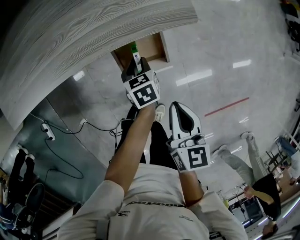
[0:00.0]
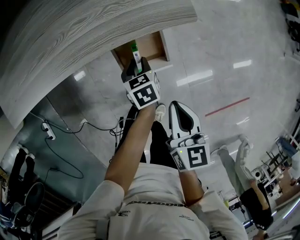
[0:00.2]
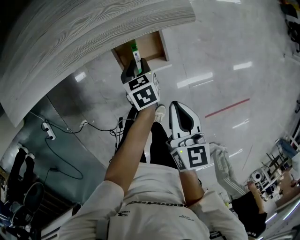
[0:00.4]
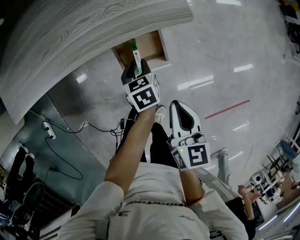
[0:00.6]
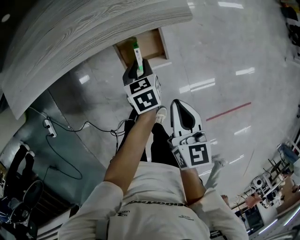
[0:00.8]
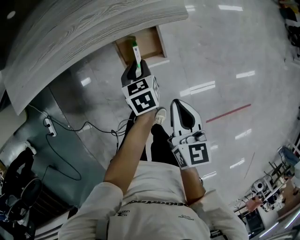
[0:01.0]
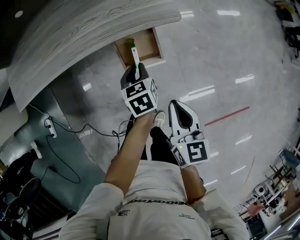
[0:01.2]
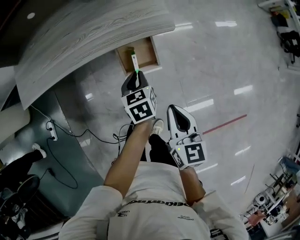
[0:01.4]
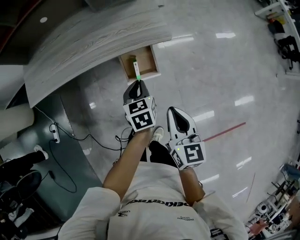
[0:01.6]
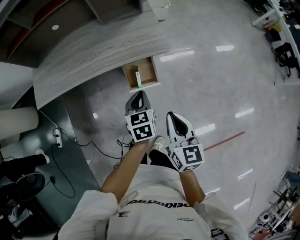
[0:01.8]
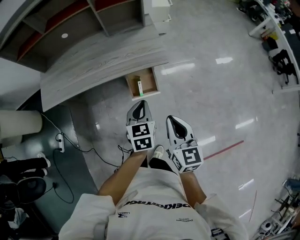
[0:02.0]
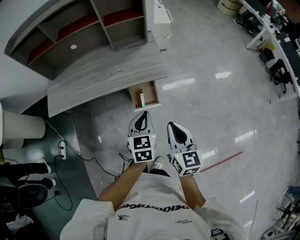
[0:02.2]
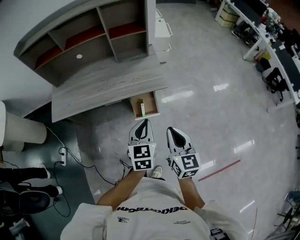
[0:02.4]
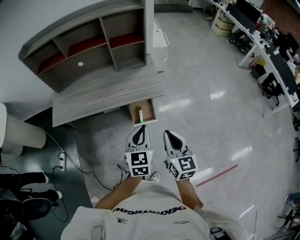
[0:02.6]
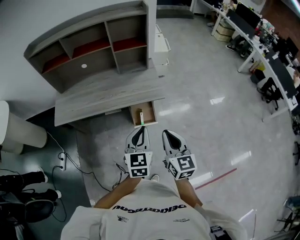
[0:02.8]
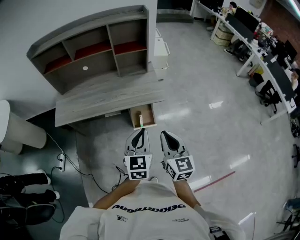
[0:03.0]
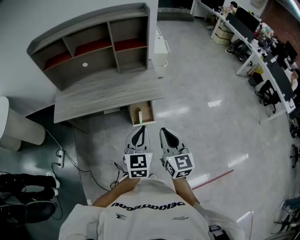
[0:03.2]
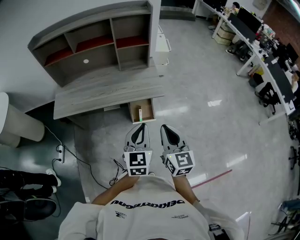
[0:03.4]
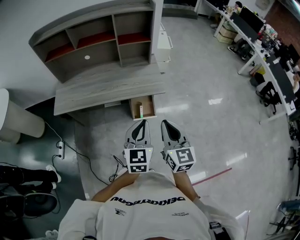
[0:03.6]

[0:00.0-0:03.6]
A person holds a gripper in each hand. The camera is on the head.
0:00.0 to 0:01.8: The two grippers go approximately 25 cm upward and backward. The left gripper turns by some 20 degrees, and closes up.
0:01.8 to 0:03.6: The right gripper shifts approximately 20 cm upward. Meanwhile the left gripper moves upward and backward, some 30 cm, and swivels about 30 degrees.

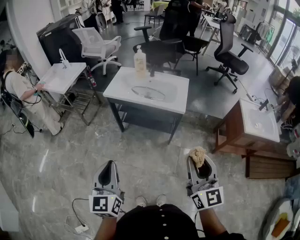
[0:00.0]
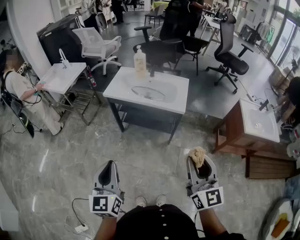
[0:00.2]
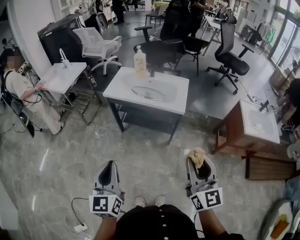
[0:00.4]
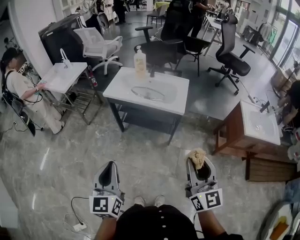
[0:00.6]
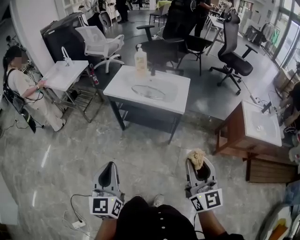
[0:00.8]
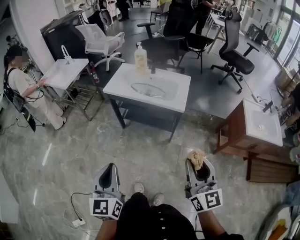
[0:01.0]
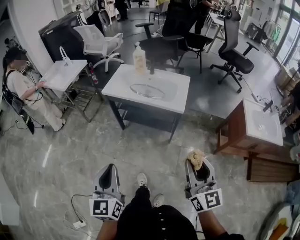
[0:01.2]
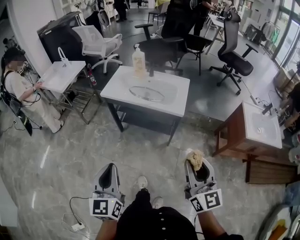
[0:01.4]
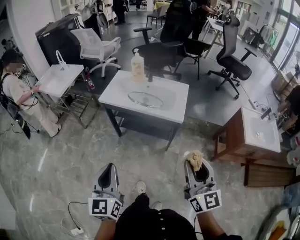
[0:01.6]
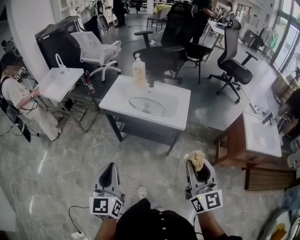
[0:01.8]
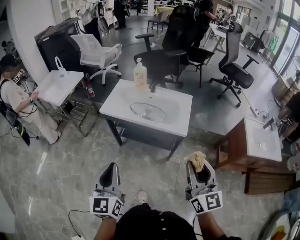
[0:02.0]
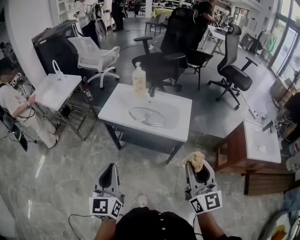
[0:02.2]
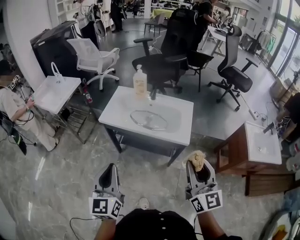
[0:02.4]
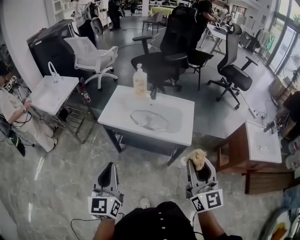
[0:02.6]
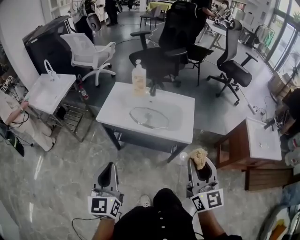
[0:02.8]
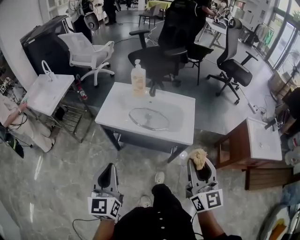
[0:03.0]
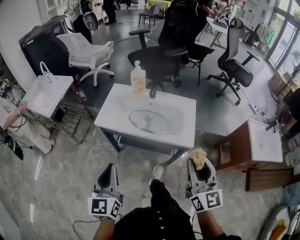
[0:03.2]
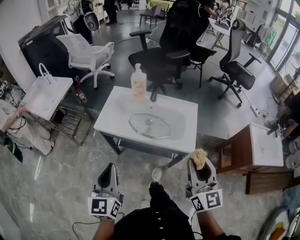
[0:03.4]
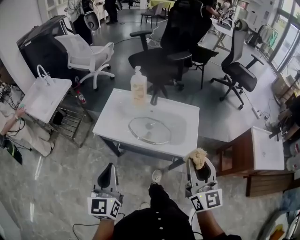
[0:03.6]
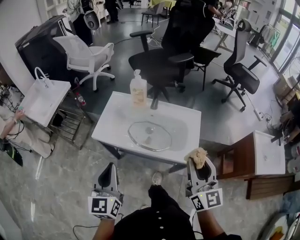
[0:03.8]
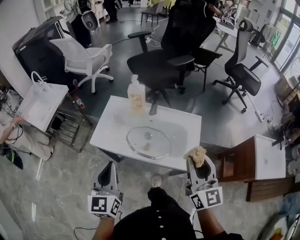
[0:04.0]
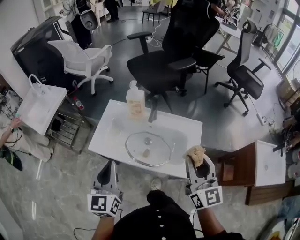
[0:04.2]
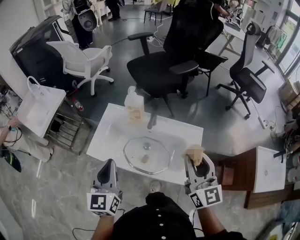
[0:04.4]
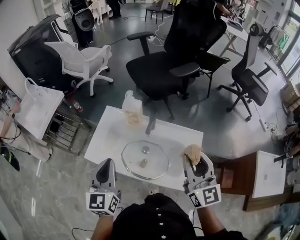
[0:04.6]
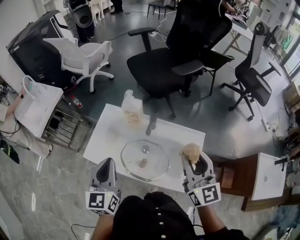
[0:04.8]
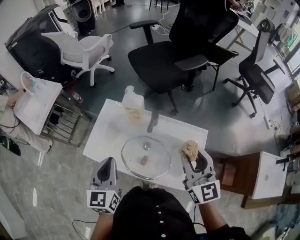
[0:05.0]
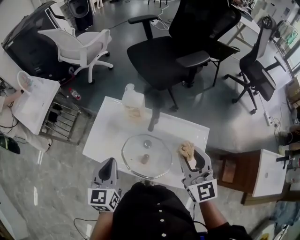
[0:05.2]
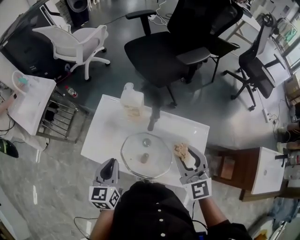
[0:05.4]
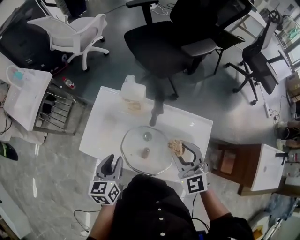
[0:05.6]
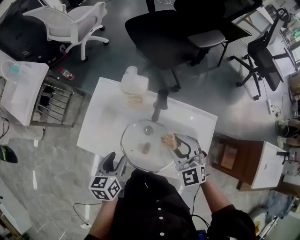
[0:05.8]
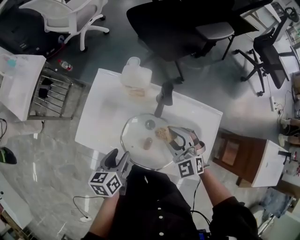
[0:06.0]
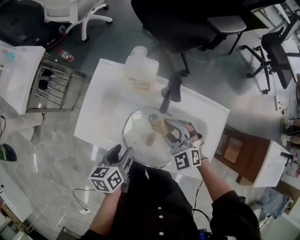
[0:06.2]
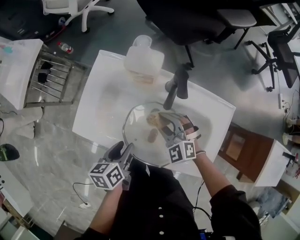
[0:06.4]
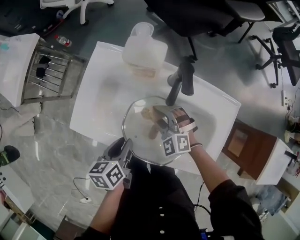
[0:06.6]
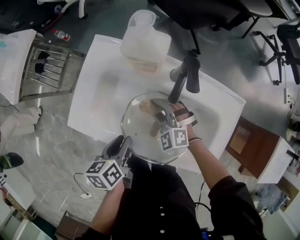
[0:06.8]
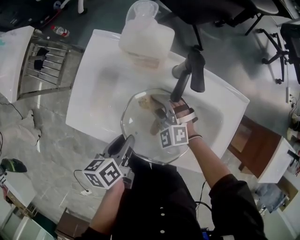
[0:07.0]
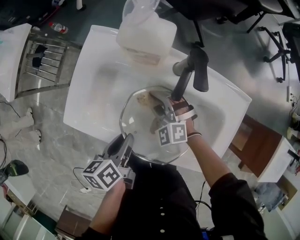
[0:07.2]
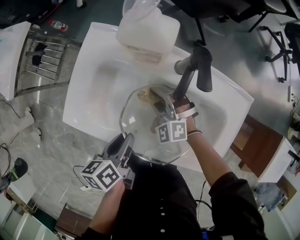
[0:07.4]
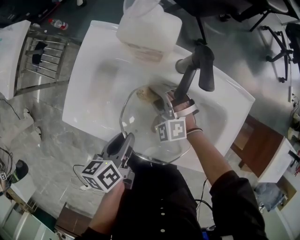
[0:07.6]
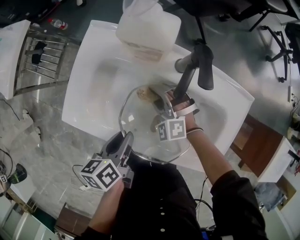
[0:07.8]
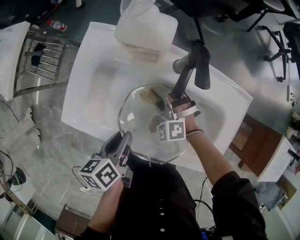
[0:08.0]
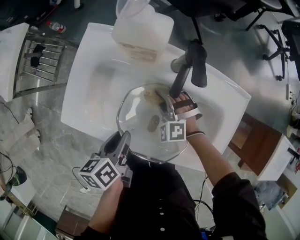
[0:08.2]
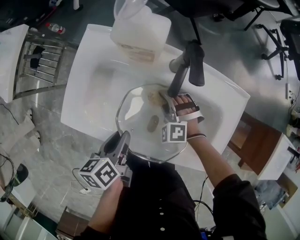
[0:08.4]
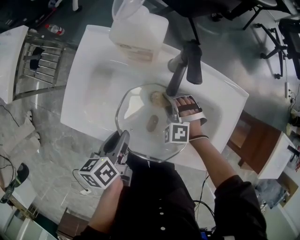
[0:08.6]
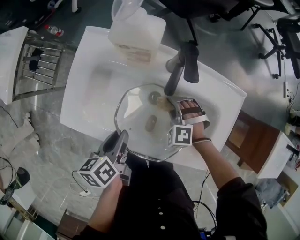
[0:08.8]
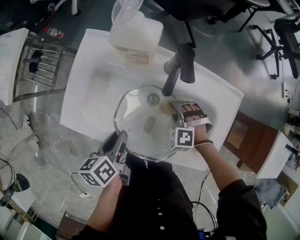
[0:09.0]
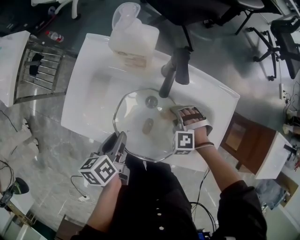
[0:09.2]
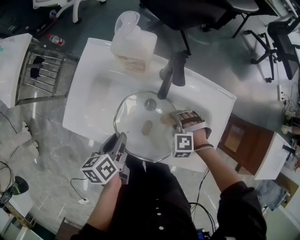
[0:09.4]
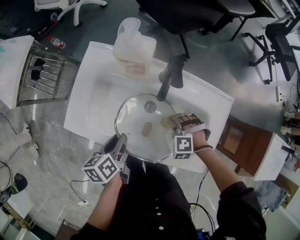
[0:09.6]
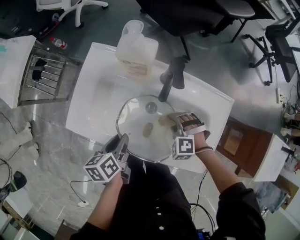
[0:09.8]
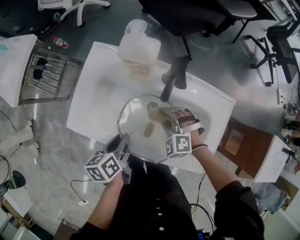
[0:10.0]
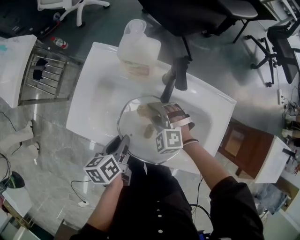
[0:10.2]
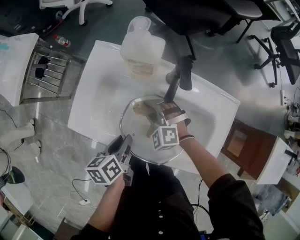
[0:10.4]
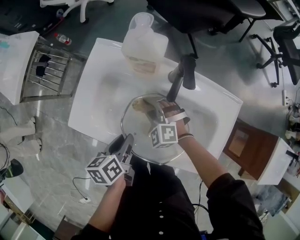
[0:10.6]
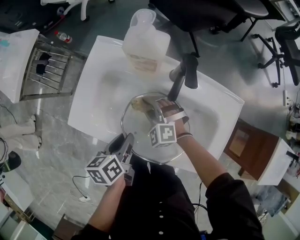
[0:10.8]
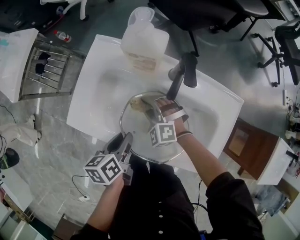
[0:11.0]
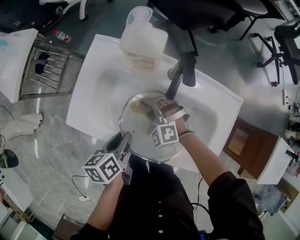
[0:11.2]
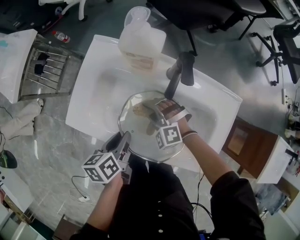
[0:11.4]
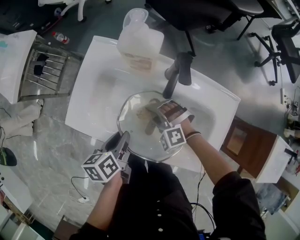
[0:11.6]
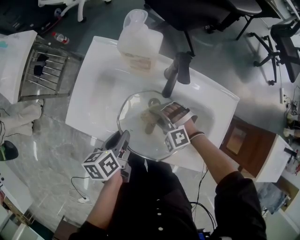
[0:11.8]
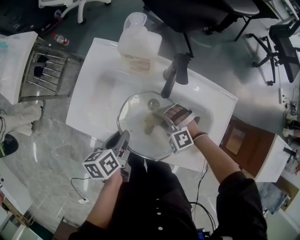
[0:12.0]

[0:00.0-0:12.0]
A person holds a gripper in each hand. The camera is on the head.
0:00.0 to 0:01.6: The grippers both shift forward by approximately 5 cm.
0:01.6 to 0:03.0: Both grippers travel together forward, roughly 20 cm.
0:03.0 to 0:04.4: The two grippers go approximately 30 cm forward.
0:04.4 to 0:06.0: The left gripper moves downward, some 25 cm, tips its fingers downward by about 30 degrees, and opens its fingers. Meanwhile the right gripper goes roughly 30 cm downward, forward and to the left, and tips its fingers downward by approximately 30 degrees.
0:06.0 to 0:07.6: The left gripper goes approximately 5 cm downward, and closes. The right gripper shifts some 20 cm downward and to the left, and turns by approximately 20 degrees.
0:07.6 to 0:09.0: The right gripper moves to the right and backward, approximately 15 cm, and turns by some 30 degrees.
0:09.0 to 0:10.4: The right gripper travels to the left and upward by some 15 cm, and turns by about 20 degrees.
0:10.4 to 0:12.0: The right gripper goes about 5 cm backward, and swivels roughly 20 degrees.

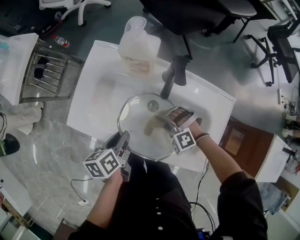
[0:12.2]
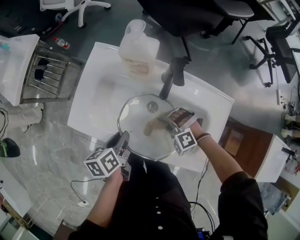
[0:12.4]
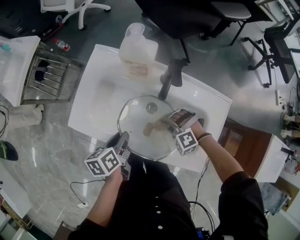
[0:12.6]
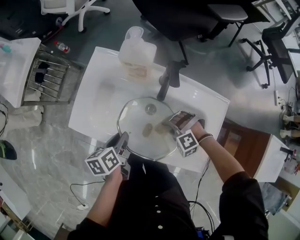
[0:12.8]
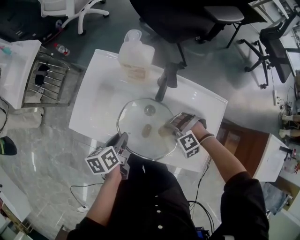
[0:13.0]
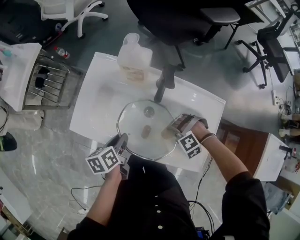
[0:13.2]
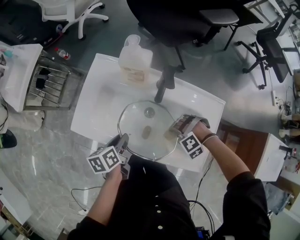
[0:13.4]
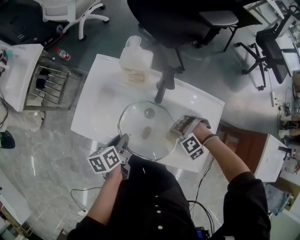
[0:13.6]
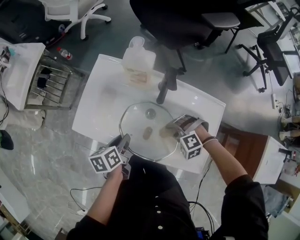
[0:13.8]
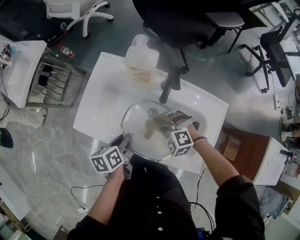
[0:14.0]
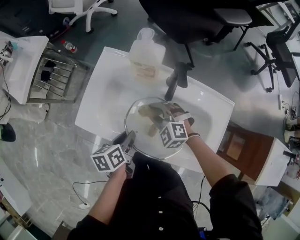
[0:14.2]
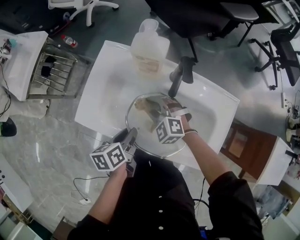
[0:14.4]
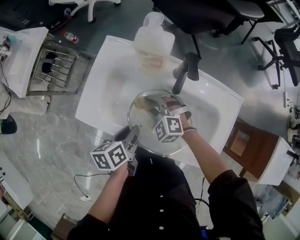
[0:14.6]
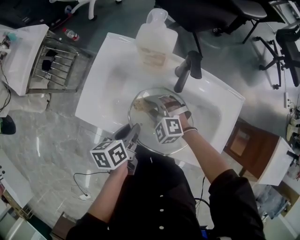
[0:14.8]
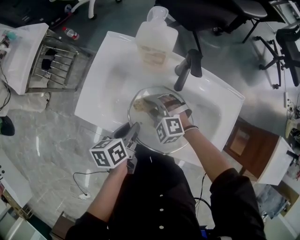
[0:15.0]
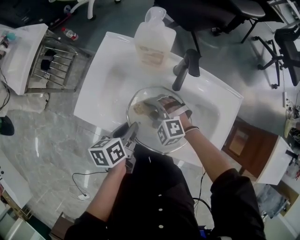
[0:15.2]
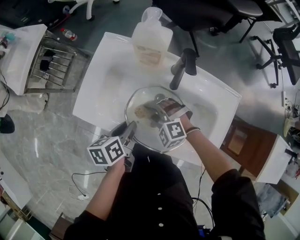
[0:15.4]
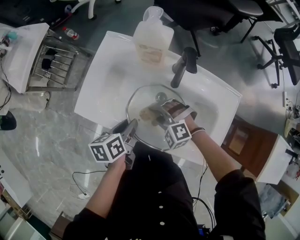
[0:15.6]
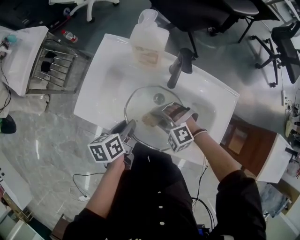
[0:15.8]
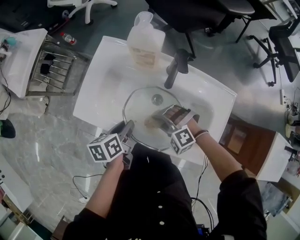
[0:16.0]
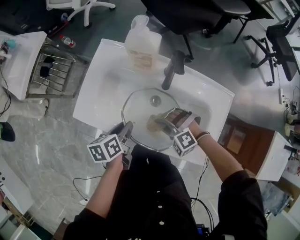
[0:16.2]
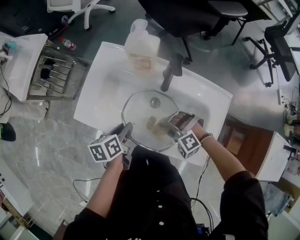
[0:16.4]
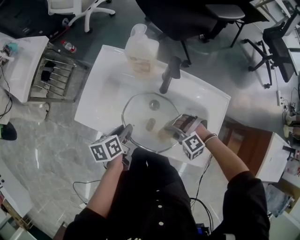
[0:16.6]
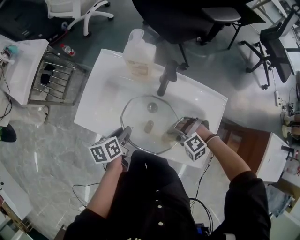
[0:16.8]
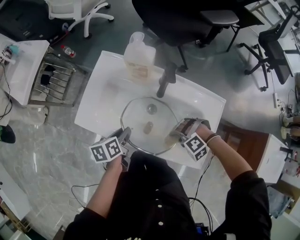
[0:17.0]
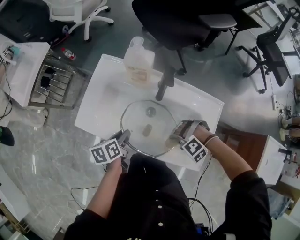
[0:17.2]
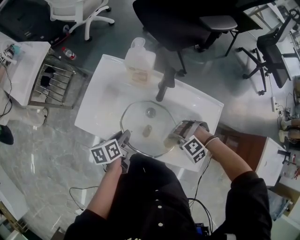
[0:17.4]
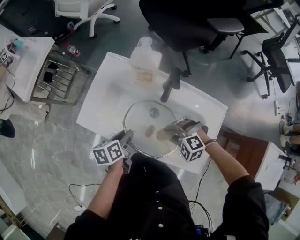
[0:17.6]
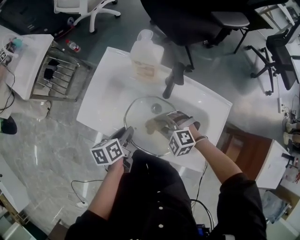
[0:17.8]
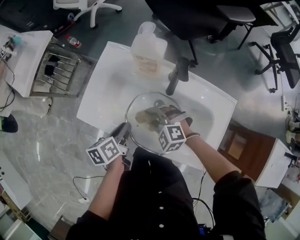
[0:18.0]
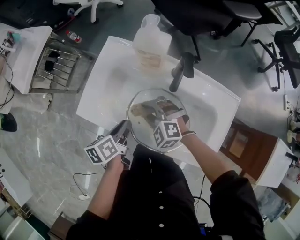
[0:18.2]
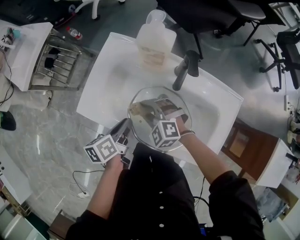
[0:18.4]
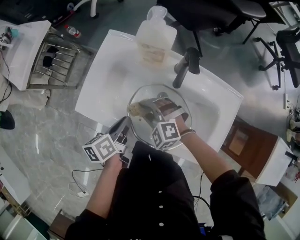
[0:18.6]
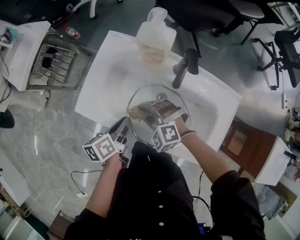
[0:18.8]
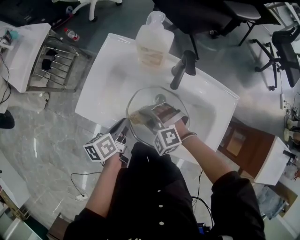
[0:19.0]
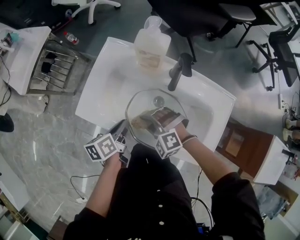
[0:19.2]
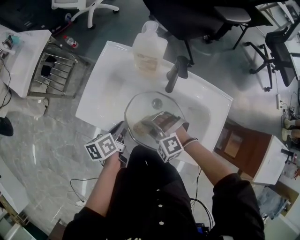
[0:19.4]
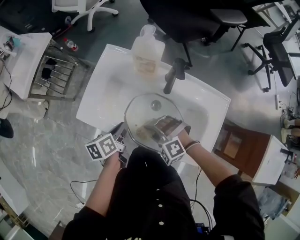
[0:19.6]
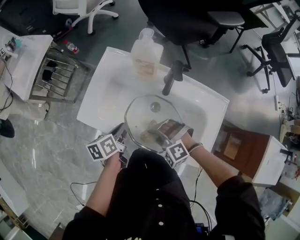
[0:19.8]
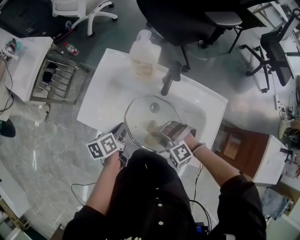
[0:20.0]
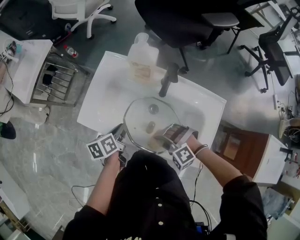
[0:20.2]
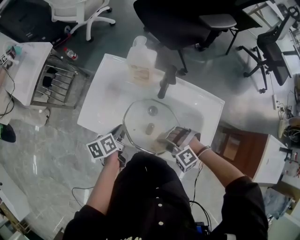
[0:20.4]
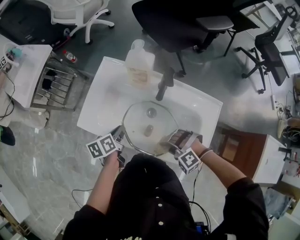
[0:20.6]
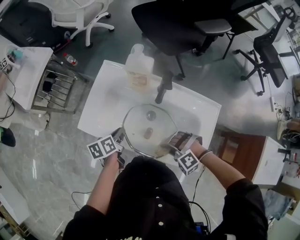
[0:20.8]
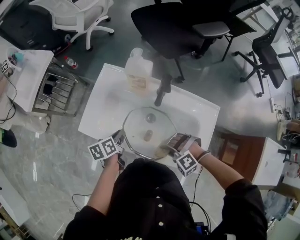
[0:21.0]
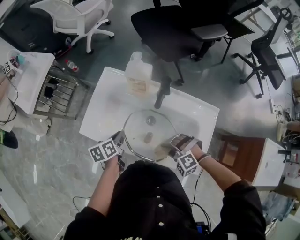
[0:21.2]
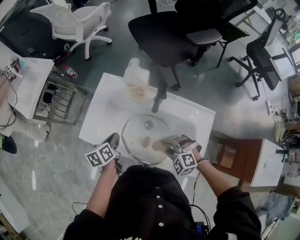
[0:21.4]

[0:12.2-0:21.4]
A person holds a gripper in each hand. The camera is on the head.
0:13.8 to 0:15.2: The right gripper travels to the left and forward by roughly 15 cm, and swivels approximately 30 degrees.
0:15.2 to 0:16.8: The right gripper goes approximately 20 cm backward and to the right, and rotates approximately 30 degrees.
0:16.8 to 0:18.4: The right gripper changes place by about 20 cm, and rotates some 40 degrees.
0:18.4 to 0:19.8: The right gripper moves backward, approximately 10 cm, and turns by some 20 degrees.
0:19.8 to 0:21.4: The right gripper goes roughly 10 cm to the right, and swivels some 20 degrees.
